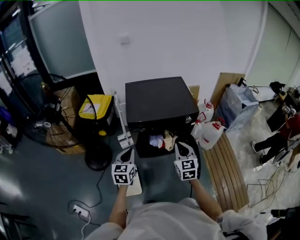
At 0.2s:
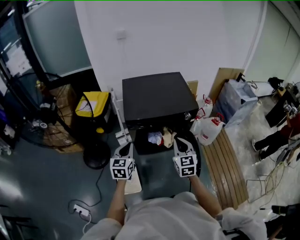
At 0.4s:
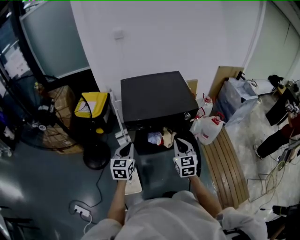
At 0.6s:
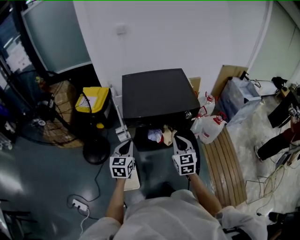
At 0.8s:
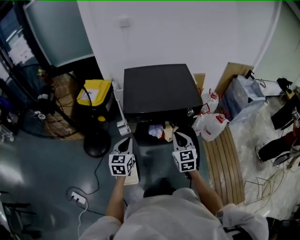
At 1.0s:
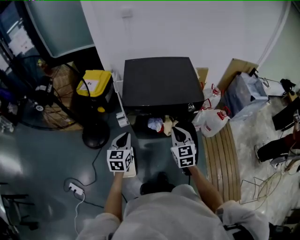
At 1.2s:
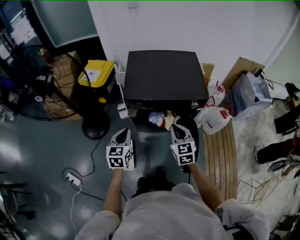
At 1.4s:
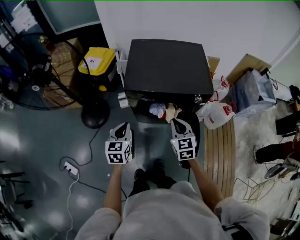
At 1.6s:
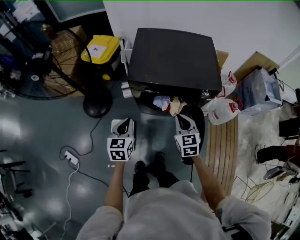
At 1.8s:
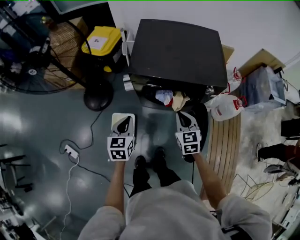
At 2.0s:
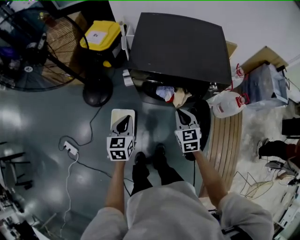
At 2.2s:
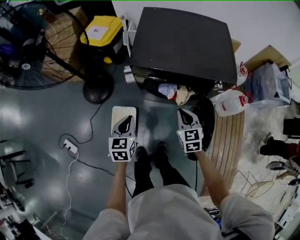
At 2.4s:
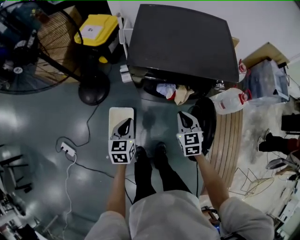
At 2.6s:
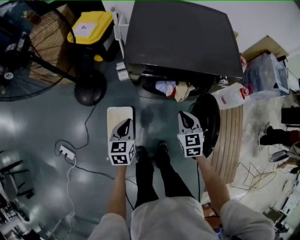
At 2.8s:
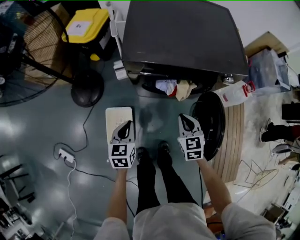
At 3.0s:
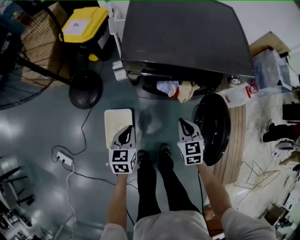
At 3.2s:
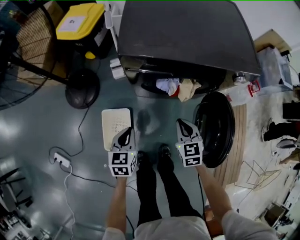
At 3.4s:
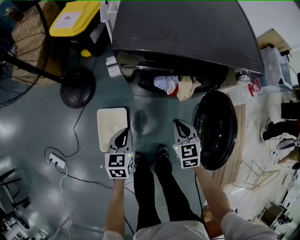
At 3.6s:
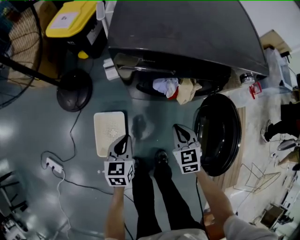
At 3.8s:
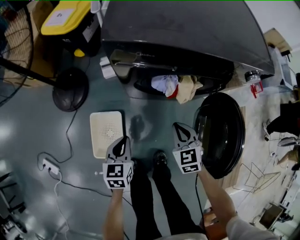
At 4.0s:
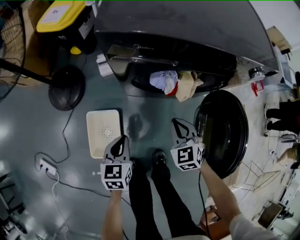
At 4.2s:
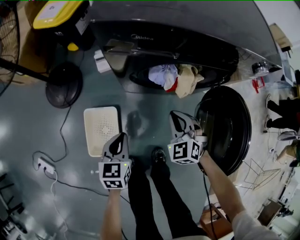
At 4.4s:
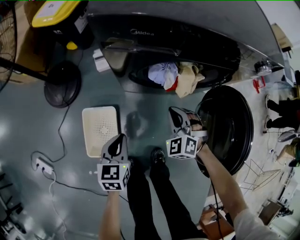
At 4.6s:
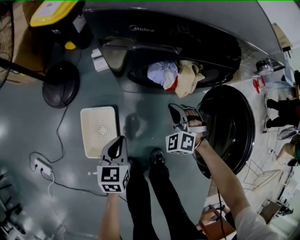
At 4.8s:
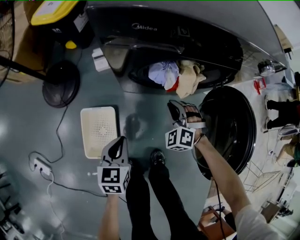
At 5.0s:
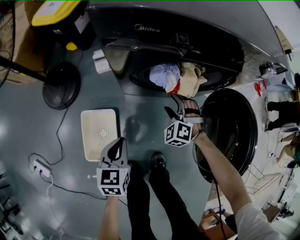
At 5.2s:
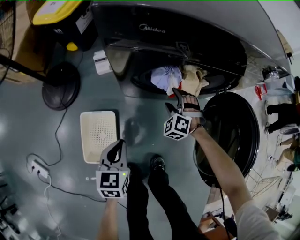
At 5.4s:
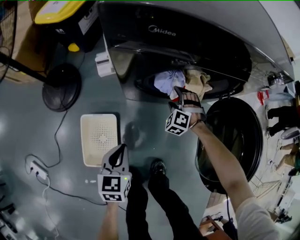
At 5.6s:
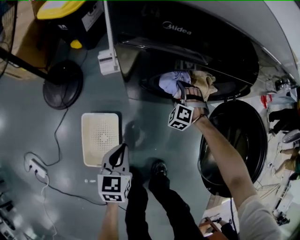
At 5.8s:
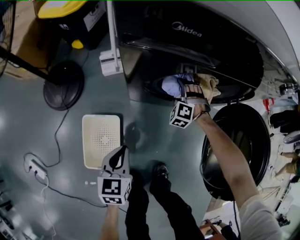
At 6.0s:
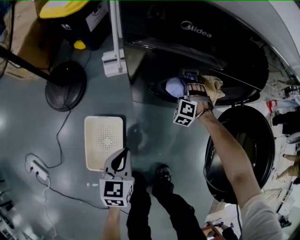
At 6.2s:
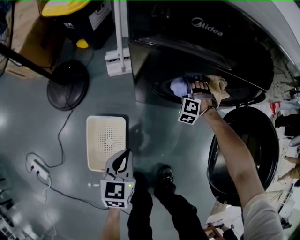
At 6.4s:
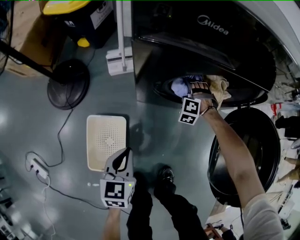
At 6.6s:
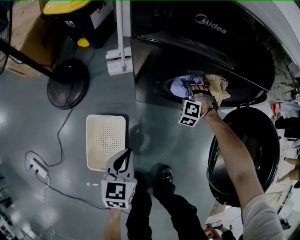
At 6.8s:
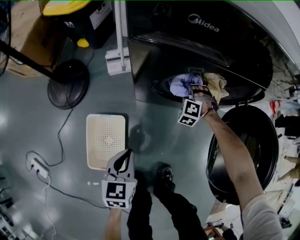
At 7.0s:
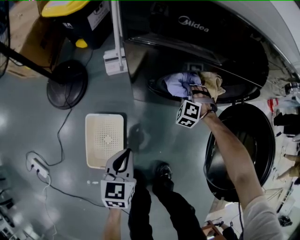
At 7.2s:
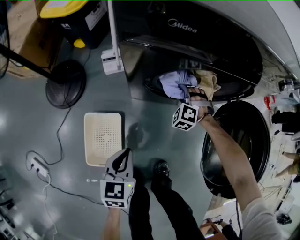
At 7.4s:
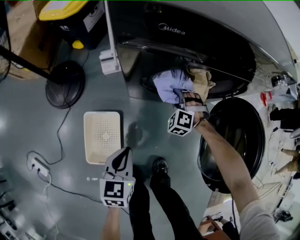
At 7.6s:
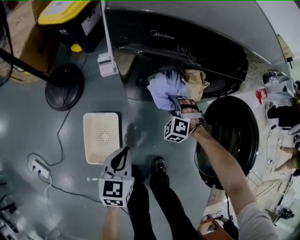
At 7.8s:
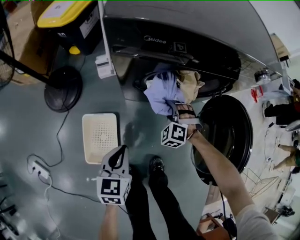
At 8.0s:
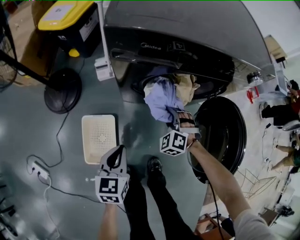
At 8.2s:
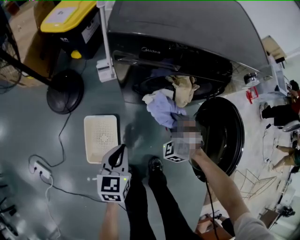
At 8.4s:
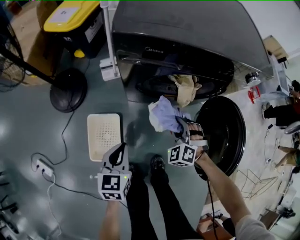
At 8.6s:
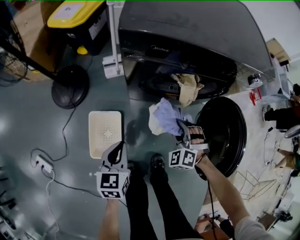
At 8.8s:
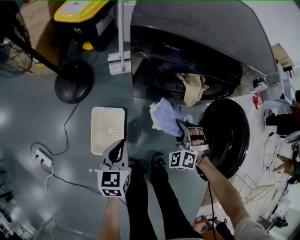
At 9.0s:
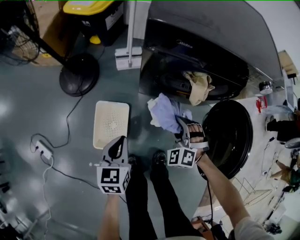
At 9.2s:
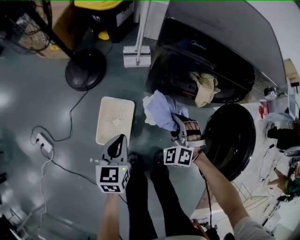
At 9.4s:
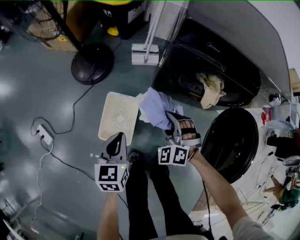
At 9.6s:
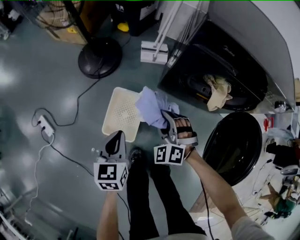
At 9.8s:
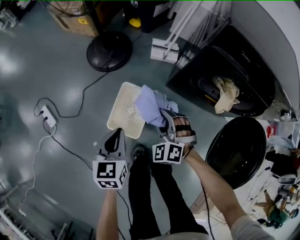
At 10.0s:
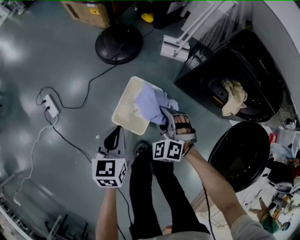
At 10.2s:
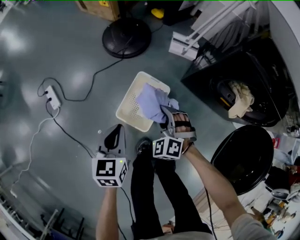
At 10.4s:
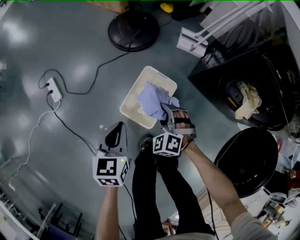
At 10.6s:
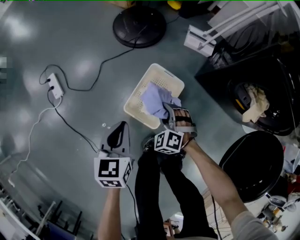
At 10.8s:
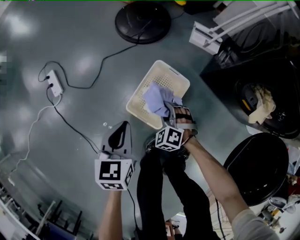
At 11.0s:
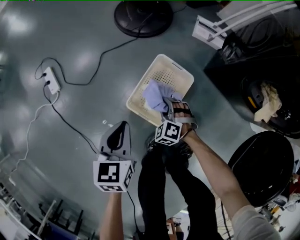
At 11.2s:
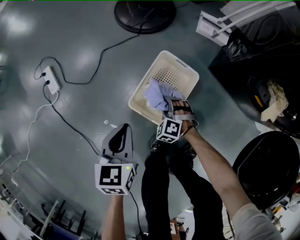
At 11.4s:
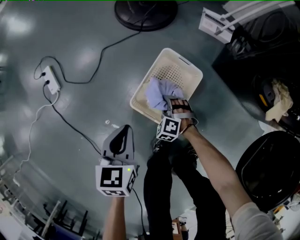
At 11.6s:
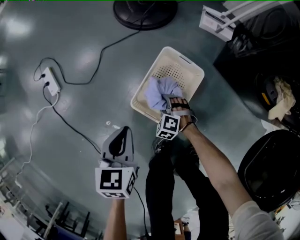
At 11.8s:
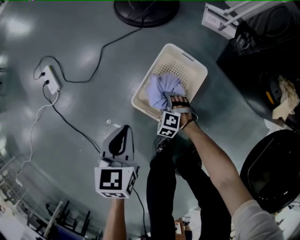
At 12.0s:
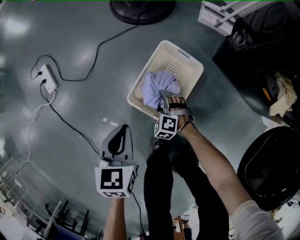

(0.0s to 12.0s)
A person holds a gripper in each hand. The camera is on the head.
0.0s - 1.6s: The left gripper goes approximately 10 cm downward and forward. Meanwhile the right gripper travels forward and downward by about 15 cm, and turns by approximately 20 degrees.
1.6s - 3.0s: The two grippers go about 25 cm downward.
3.0s - 4.4s: The grippers both shift downward by some 20 cm. The right gripper rotates around the line of its fingers by some 50 degrees, counterclockwise from behind.
4.4s - 6.0s: The left gripper heads downward, covering some 5 cm. Meanwhile the right gripper heads downward and forward, covering approximately 25 cm, swivels approximately 30 degrees, and opens up.
6.0s - 7.6s: The right gripper goes about 15 cm backward and upward, and closes up; the left gripper moves upward, some 10 cm.
7.6s - 9.0s: The left gripper goes about 10 cm to the left and upward; the right gripper moves backward and upward, roughly 20 cm.
9.0s - 10.4s: The left gripper changes place by about 25 cm, and changes its angle by about 30 degrees; the right gripper shifts by some 35 cm, and turns by approximately 30 degrees.
10.4s - 12.0s: The right gripper heads downward, covering about 30 cm, and opens its fingers. Meanwhile the left gripper shifts roughly 15 cm downward.

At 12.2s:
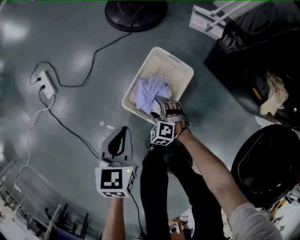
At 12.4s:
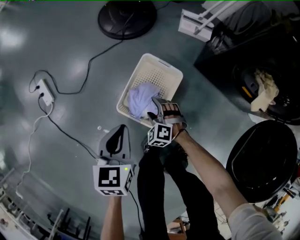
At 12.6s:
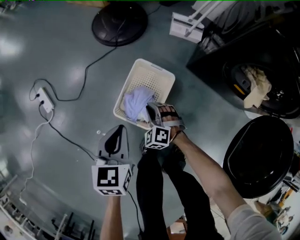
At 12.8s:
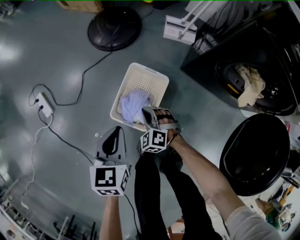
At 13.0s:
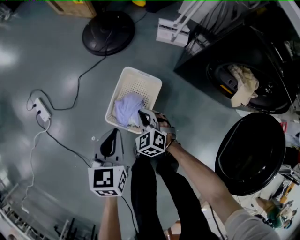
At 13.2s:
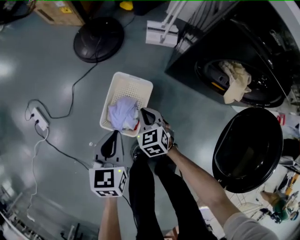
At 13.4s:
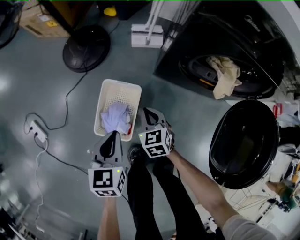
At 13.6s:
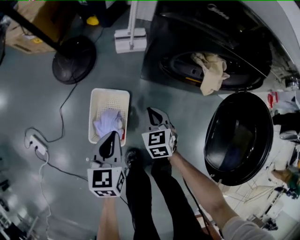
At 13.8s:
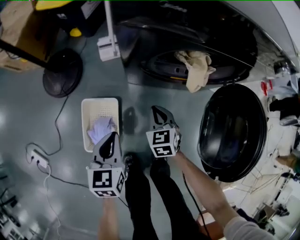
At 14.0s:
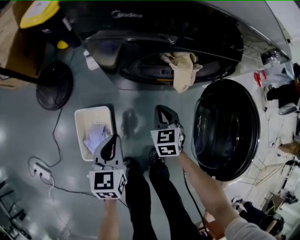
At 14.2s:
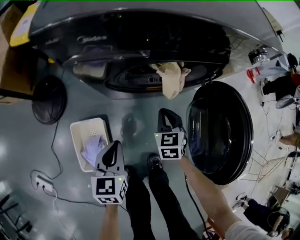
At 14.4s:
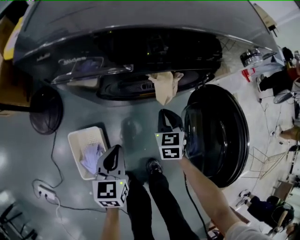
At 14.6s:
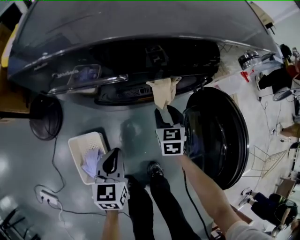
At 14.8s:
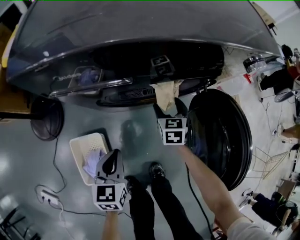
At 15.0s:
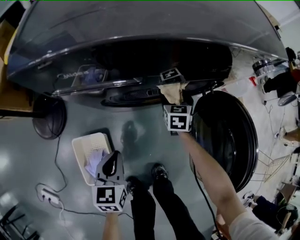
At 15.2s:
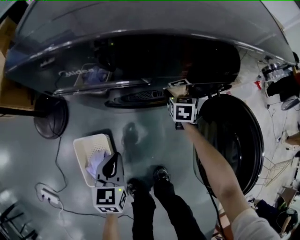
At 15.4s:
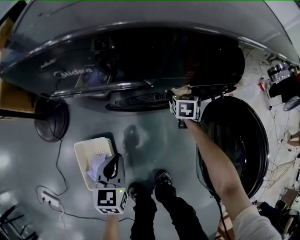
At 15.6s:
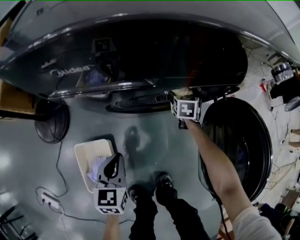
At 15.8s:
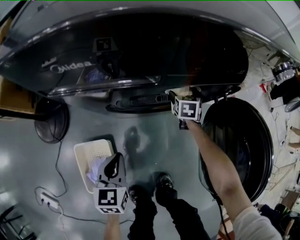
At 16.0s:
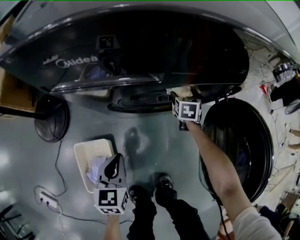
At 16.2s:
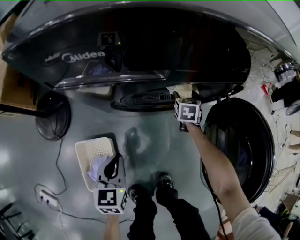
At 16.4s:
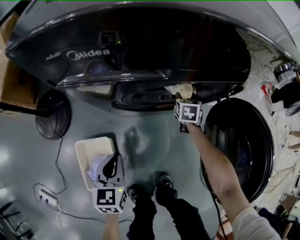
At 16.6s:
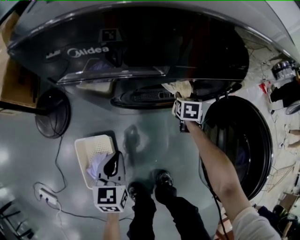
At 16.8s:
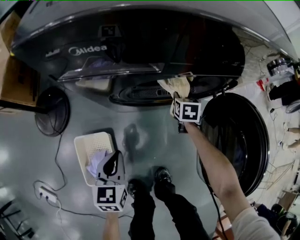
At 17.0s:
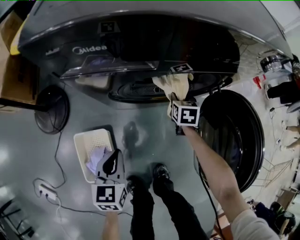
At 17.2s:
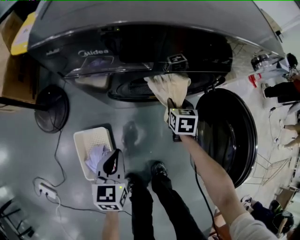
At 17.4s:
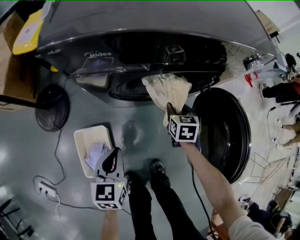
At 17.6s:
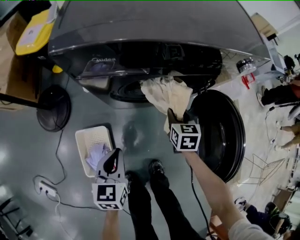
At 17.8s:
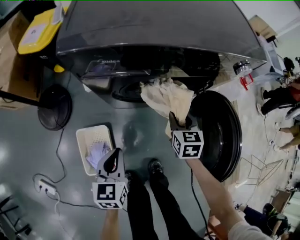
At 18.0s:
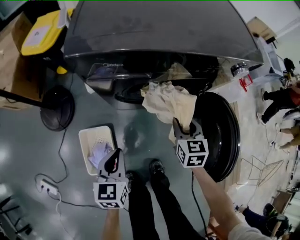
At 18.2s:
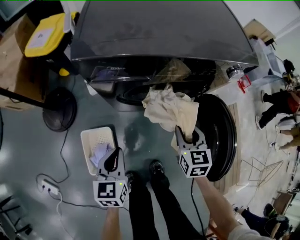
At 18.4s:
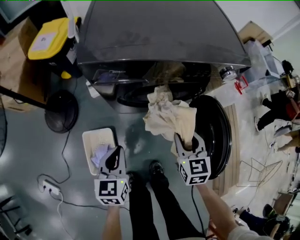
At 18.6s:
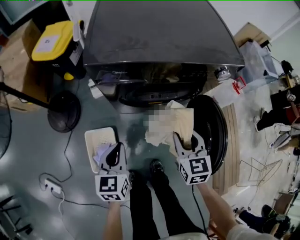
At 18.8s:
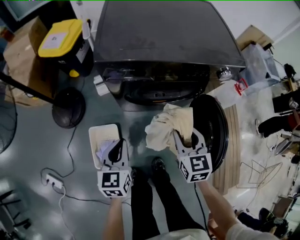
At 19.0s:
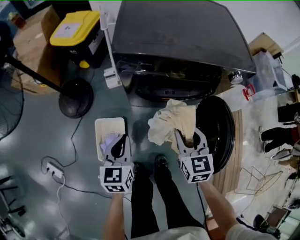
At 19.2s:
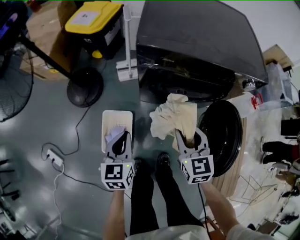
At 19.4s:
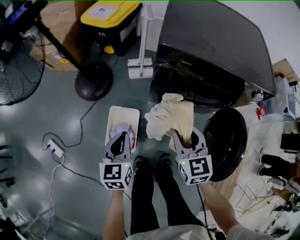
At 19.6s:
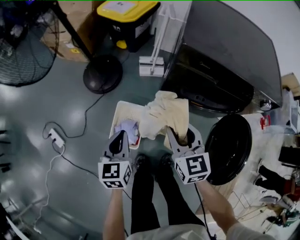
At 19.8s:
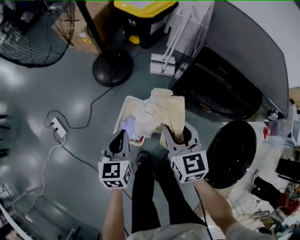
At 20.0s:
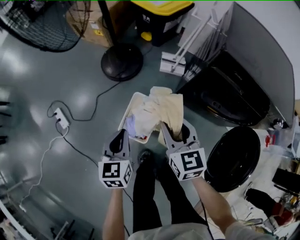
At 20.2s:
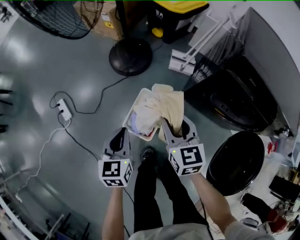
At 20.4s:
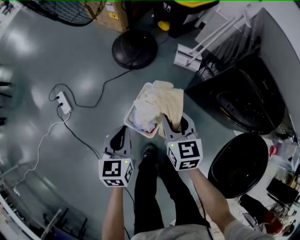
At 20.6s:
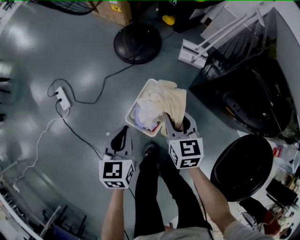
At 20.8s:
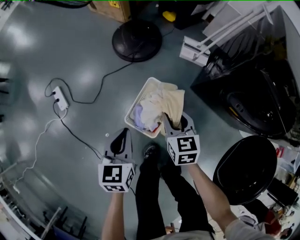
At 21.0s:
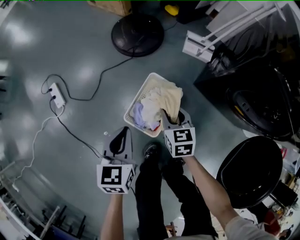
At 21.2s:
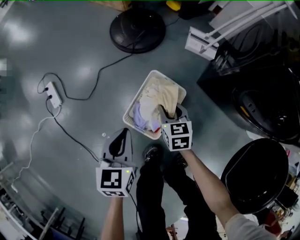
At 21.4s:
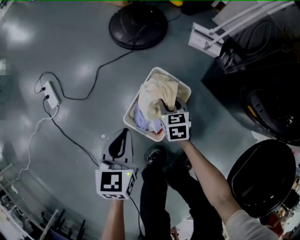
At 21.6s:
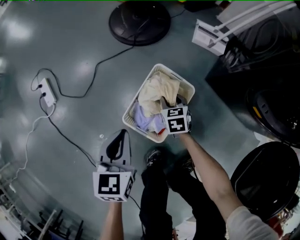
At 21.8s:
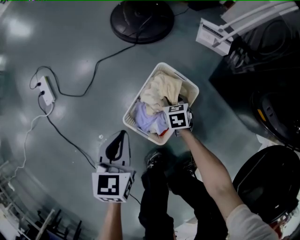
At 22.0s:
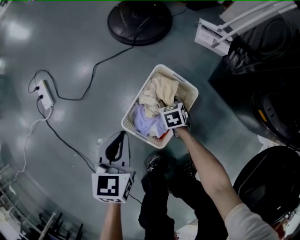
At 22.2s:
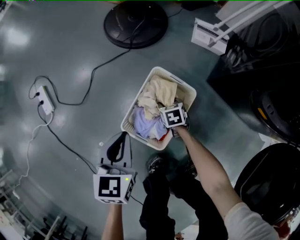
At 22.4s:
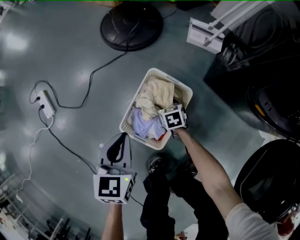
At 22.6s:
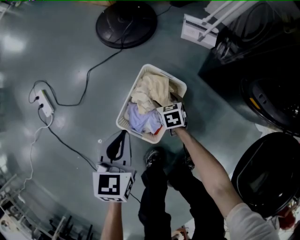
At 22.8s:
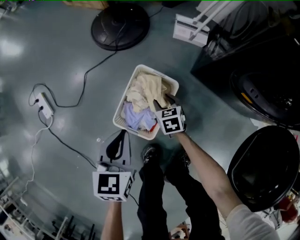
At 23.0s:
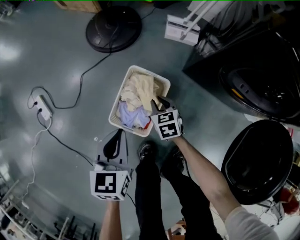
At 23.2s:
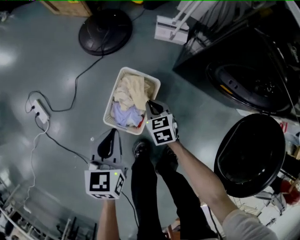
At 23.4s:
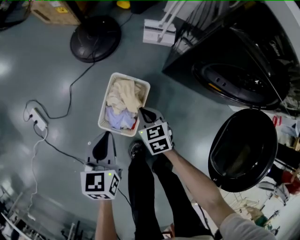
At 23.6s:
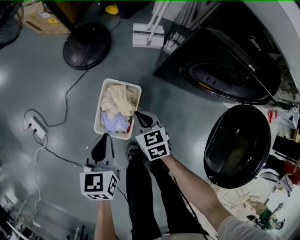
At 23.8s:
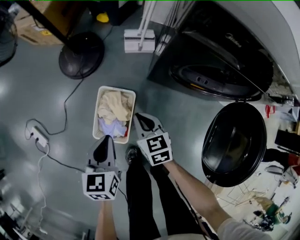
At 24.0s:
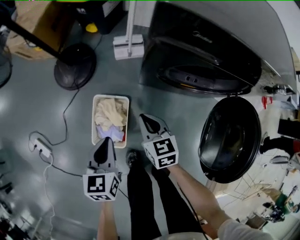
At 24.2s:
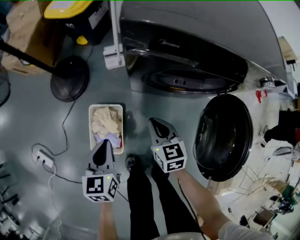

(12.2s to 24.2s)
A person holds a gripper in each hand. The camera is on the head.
12.2s - 13.8s: The left gripper changes place by about 35 cm, and swivels some 30 degrees; the right gripper moves some 50 cm, twists approximately 70 degrees clockwise, seen from behind, and closes its fingers.
13.8s - 15.2s: The right gripper shifts some 30 cm forward and to the right, rotates roughly 30 degrees, and opens. Meanwhile the left gripper is displaced forward and to the right by about 15 cm.
15.2s - 16.6s: The right gripper closes its fingers.
16.6s - 18.2s: The right gripper goes roughly 35 cm upward and backward. The left gripper travels upward by approximately 15 cm.
18.2s - 19.8s: The left gripper ends up approximately 25 cm from where it was, and changes its angle by roughly 30 degrees. Meanwhile the right gripper changes place by approximately 35 cm, and swivels about 40 degrees.
19.8s - 21.2s: The right gripper travels downward by approximately 40 cm, and rotates some 20 degrees. The left gripper travels downward and to the left by roughly 25 cm.
21.2s - 22.6s: The right gripper travels downward by approximately 20 cm, and opens up. The left gripper shifts some 10 cm downward.
22.6s - 24.2s: The right gripper moves upward, approximately 40 cm, changes its angle by roughly 40 degrees, and closes its fingers, while the left gripper changes place by approximately 30 cm.
